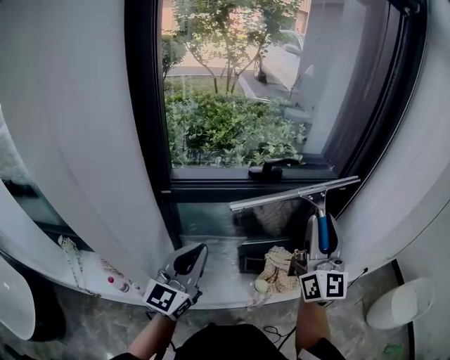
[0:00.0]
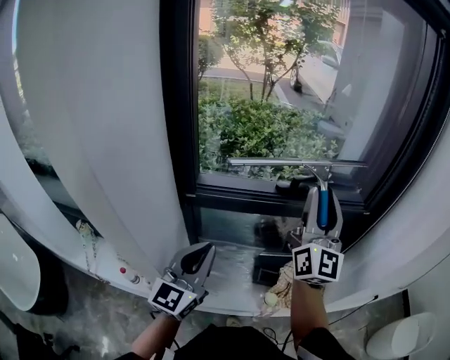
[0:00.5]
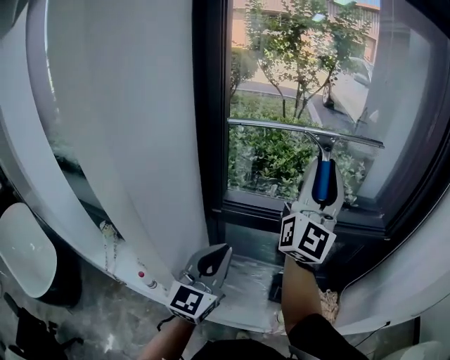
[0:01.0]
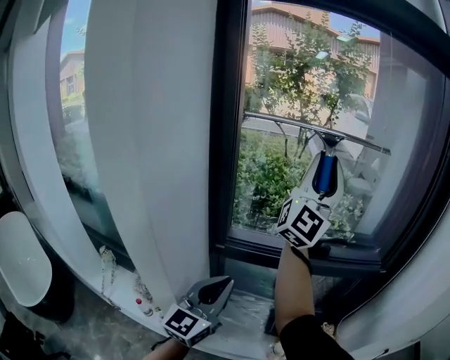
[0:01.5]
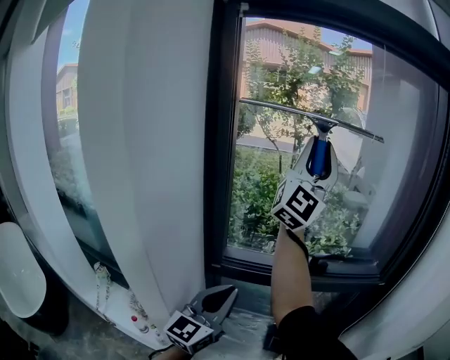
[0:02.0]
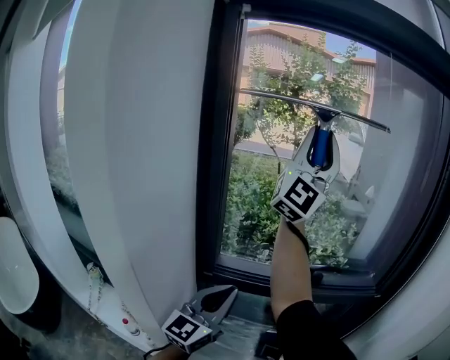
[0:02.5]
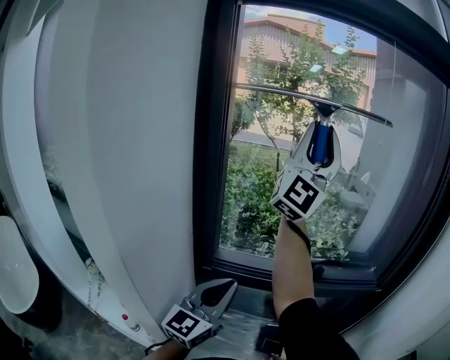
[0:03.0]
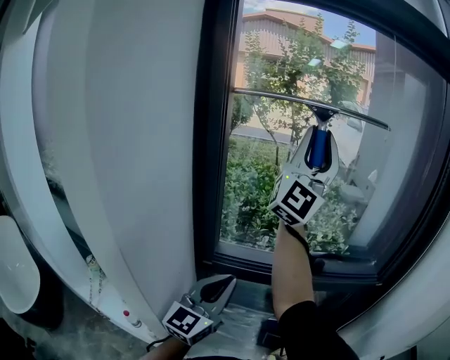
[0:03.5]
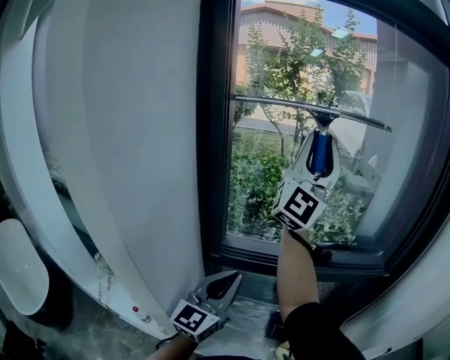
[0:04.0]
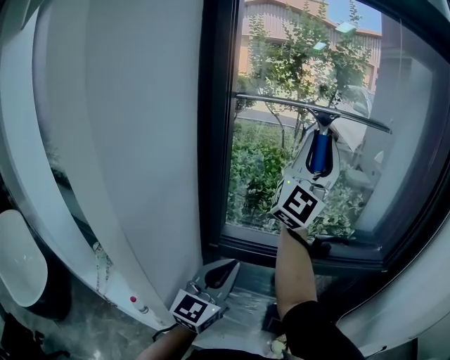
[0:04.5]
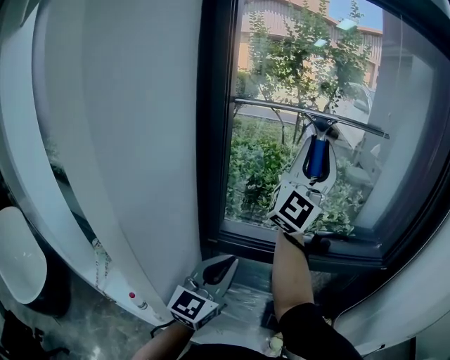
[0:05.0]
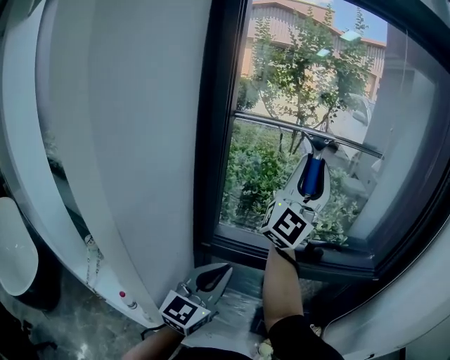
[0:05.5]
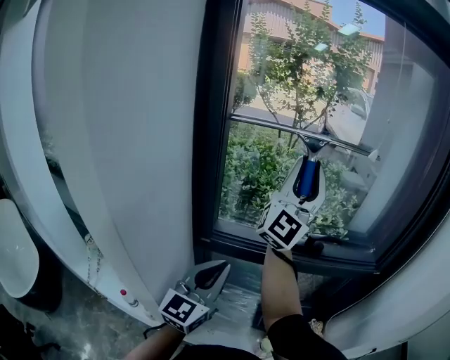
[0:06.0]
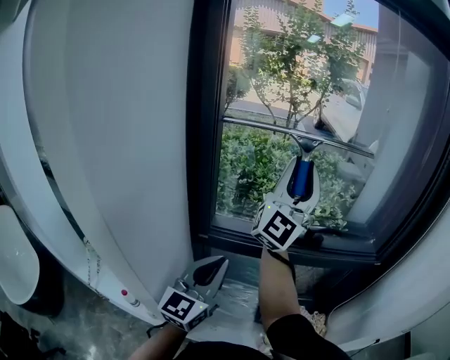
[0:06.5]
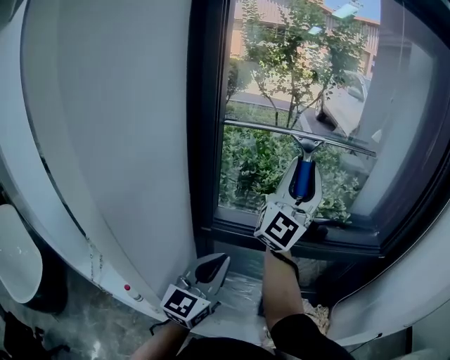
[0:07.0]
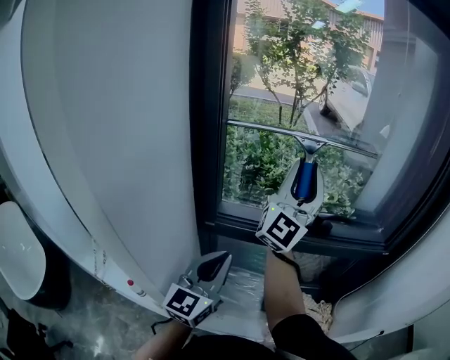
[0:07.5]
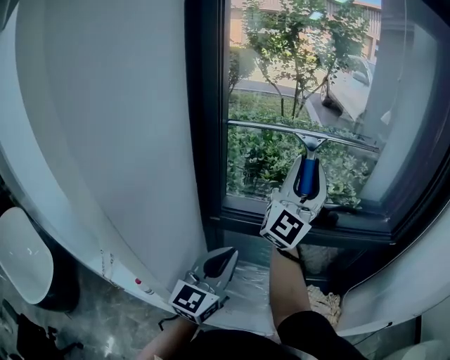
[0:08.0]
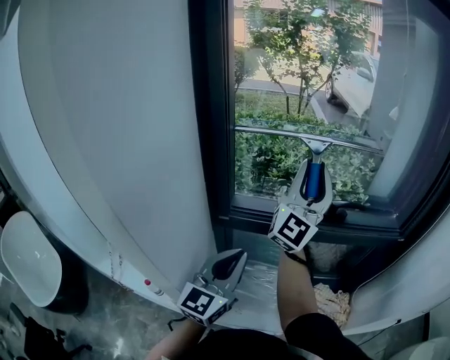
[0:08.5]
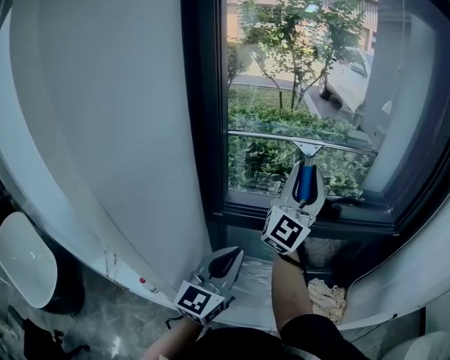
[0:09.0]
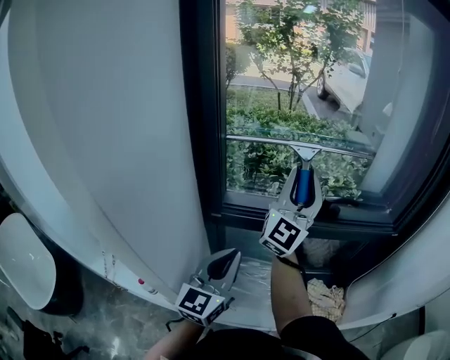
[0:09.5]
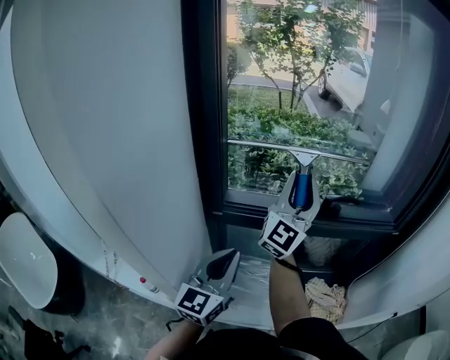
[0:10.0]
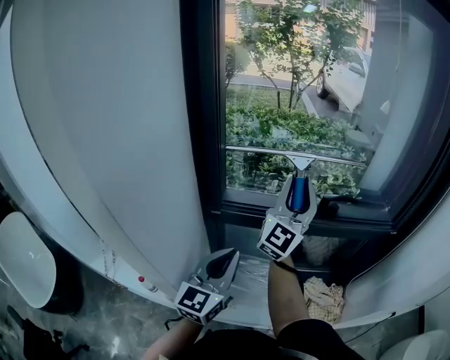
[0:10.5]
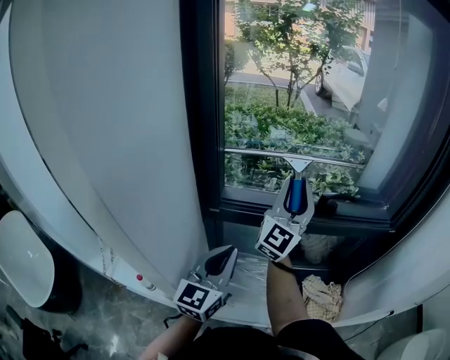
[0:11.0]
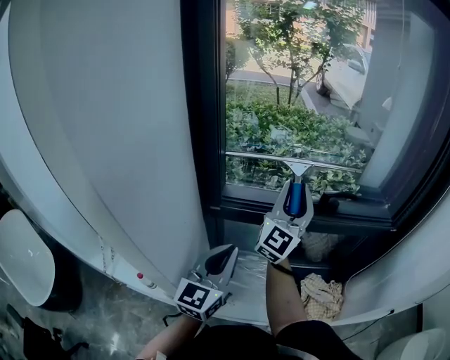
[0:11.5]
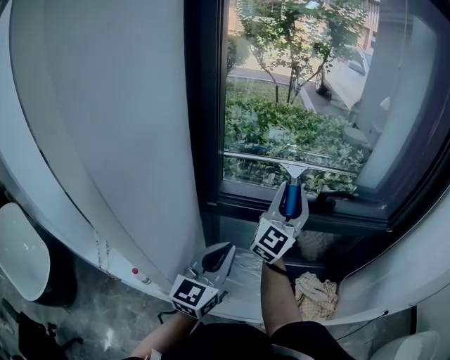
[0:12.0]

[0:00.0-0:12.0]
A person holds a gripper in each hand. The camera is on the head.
0:00.0 to 0:02.0: The right gripper is displaced upward, to the left and forward by about 40 cm, and rotates some 30 degrees. Meanwhile the left gripper travels upward by some 10 cm.
0:02.0 to 0:04.0: The grippers make only small movements.
0:04.0 to 0:06.0: The right gripper goes some 10 cm downward.
0:06.0 to 0:08.0: The right gripper shifts some 10 cm downward.
0:08.0 to 0:10.0: The right gripper heads downward, covering approximately 5 cm.
0:10.0 to 0:12.0: The right gripper heads downward, covering roughly 5 cm.

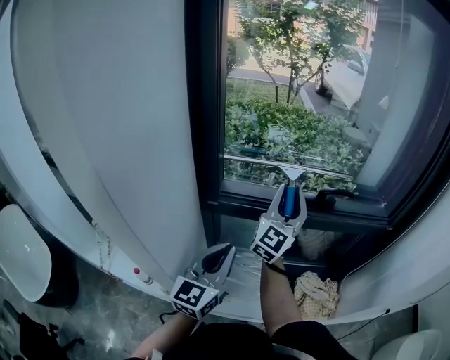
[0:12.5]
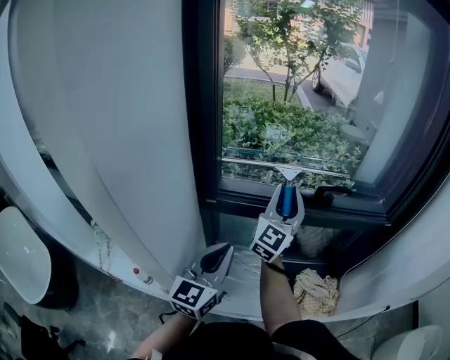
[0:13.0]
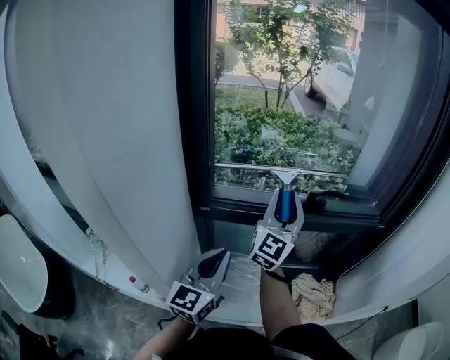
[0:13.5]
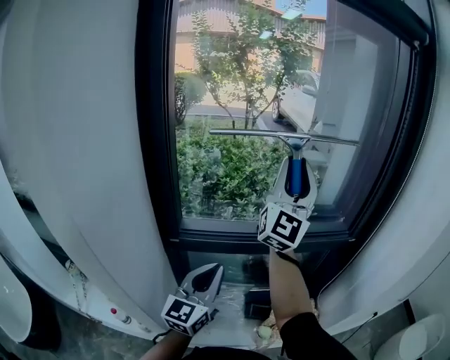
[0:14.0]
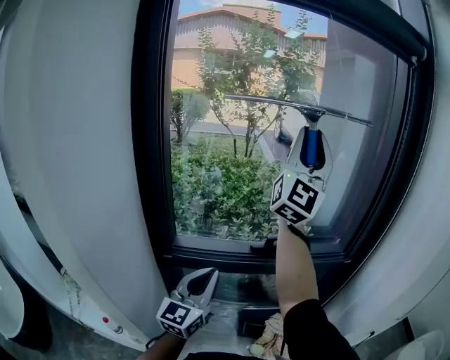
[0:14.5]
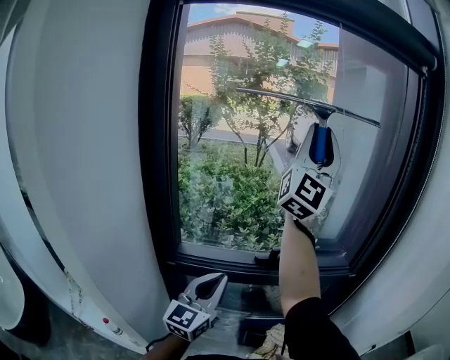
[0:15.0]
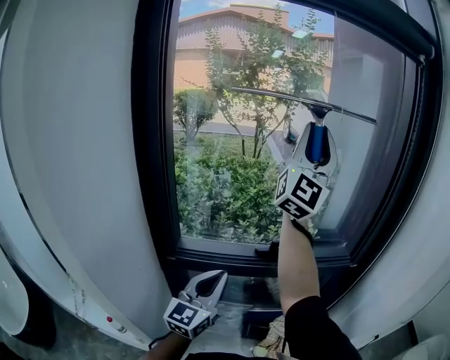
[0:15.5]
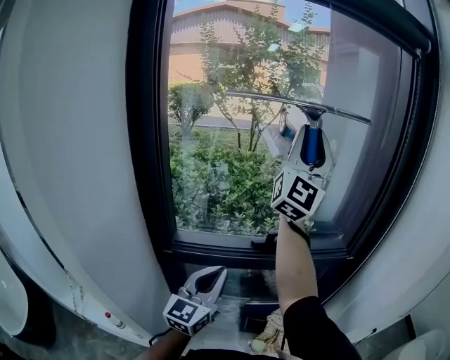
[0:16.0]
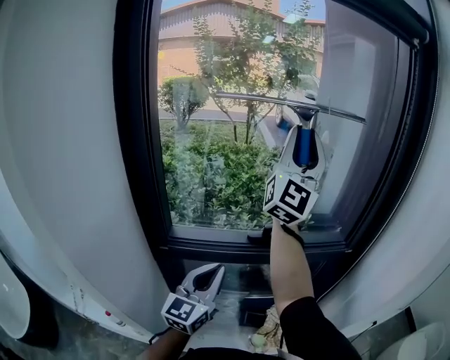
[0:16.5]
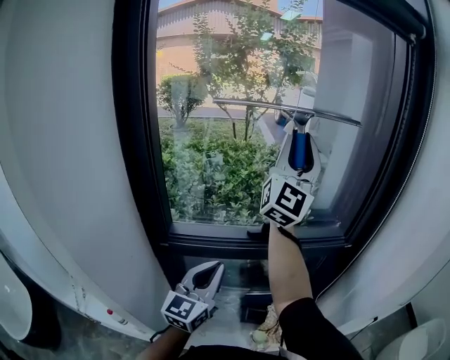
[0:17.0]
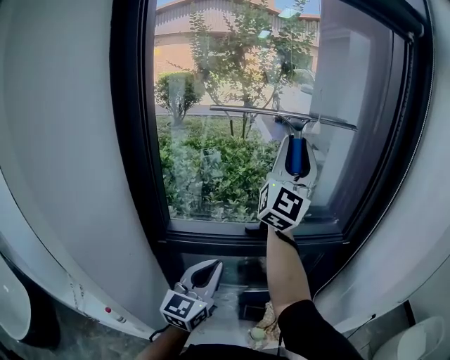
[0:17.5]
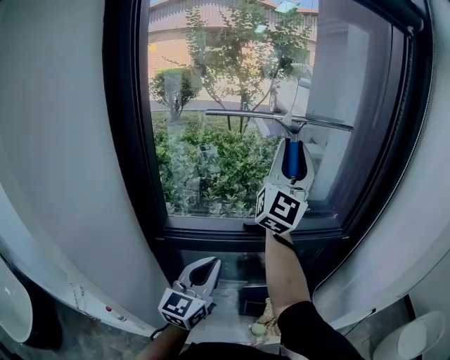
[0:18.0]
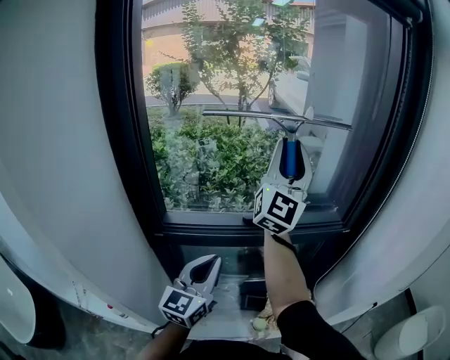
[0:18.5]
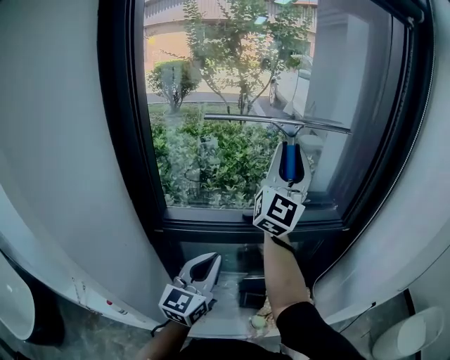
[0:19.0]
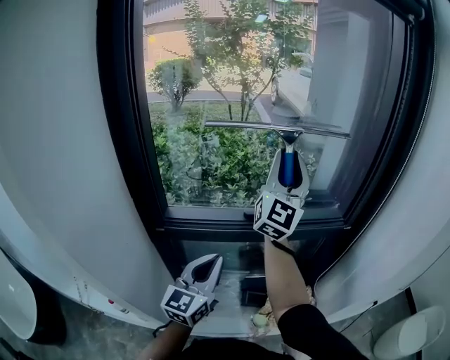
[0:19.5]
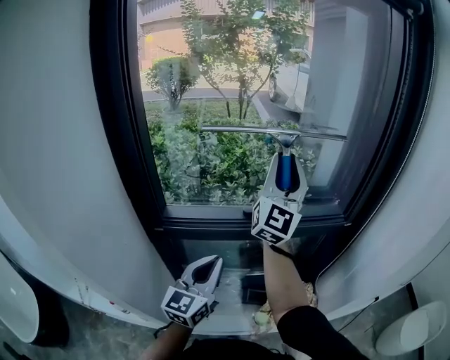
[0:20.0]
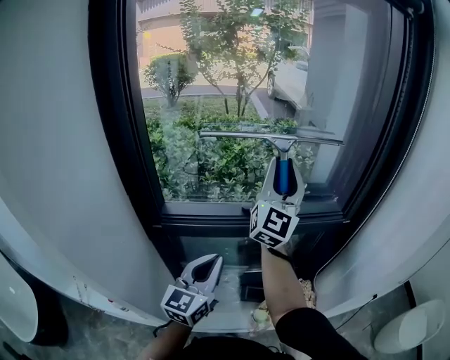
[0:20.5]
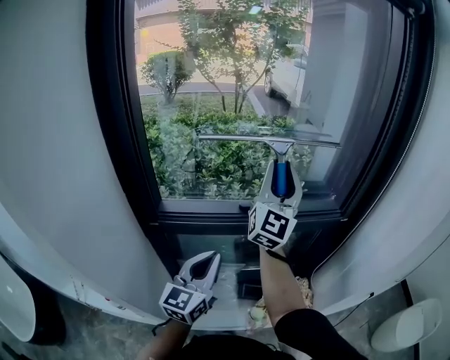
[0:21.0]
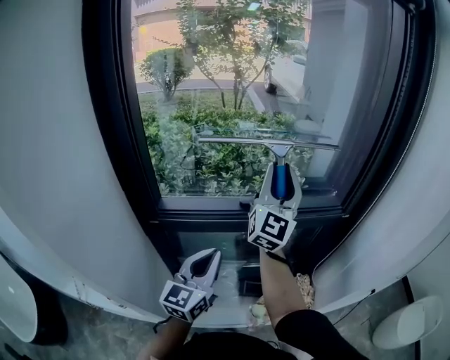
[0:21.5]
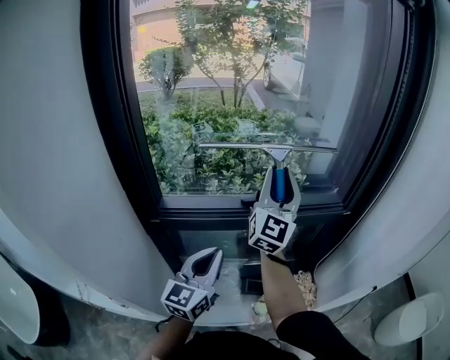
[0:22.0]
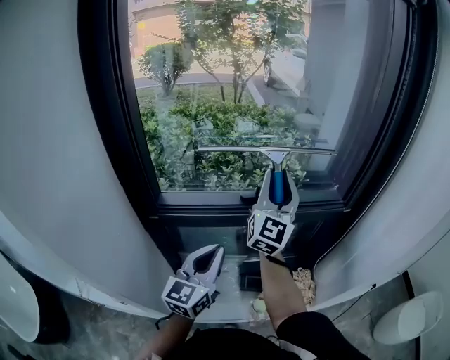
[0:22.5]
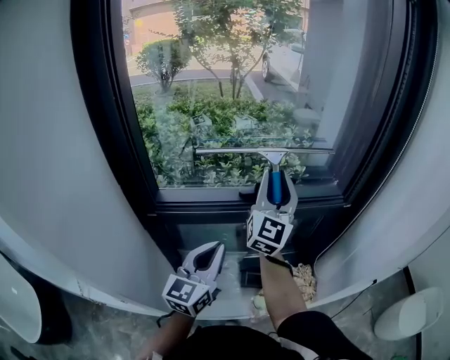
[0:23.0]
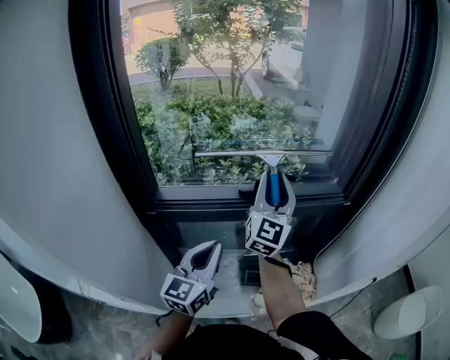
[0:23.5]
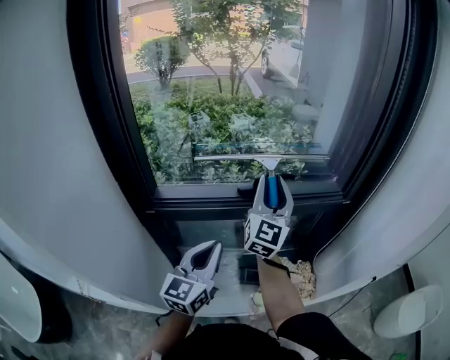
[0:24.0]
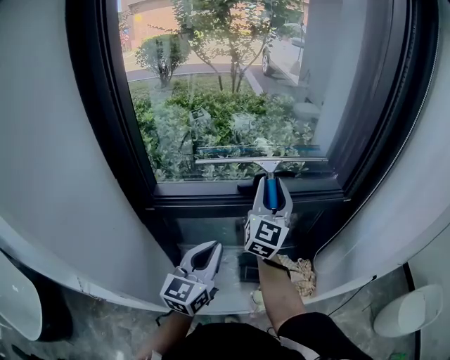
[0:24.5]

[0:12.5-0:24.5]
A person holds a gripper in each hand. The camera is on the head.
0:12.5 to 0:14.5: The left gripper shifts roughly 10 cm forward, to the right and upward. Meanwhile the right gripper moves upward, some 35 cm, and points its fingers roughly 30 degrees further upward.
0:14.5 to 0:16.5: The grippers move only a little.
0:16.5 to 0:18.5: The right gripper travels downward by approximately 10 cm.
0:18.5 to 0:20.5: The right gripper goes some 10 cm downward.
0:20.5 to 0:22.5: The right gripper heads downward, covering approximately 5 cm.
0:22.5 to 0:24.5: The right gripper heads downward, covering some 5 cm.

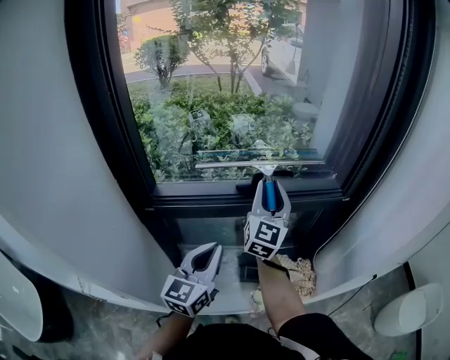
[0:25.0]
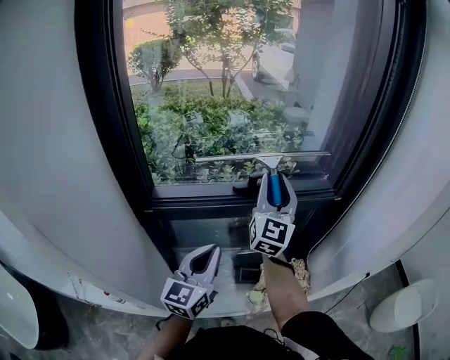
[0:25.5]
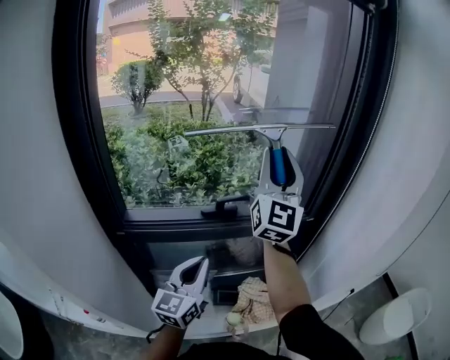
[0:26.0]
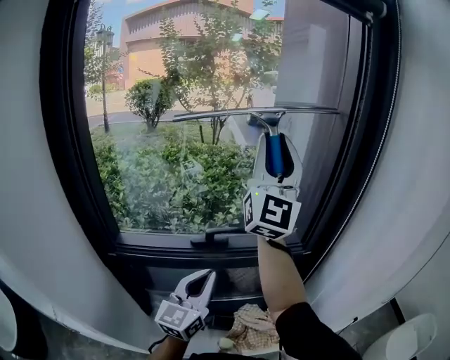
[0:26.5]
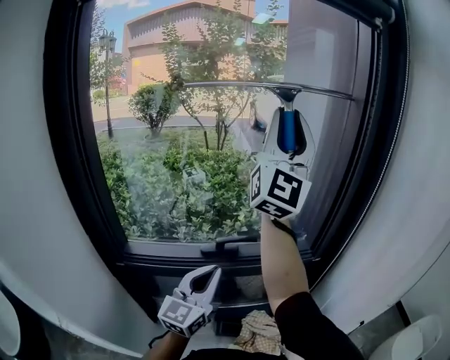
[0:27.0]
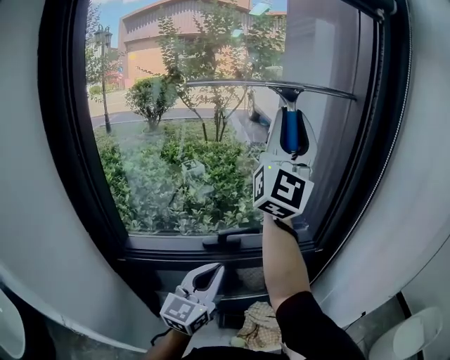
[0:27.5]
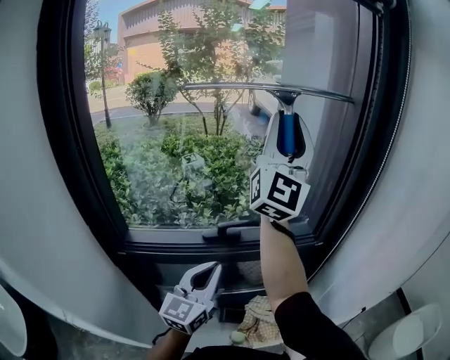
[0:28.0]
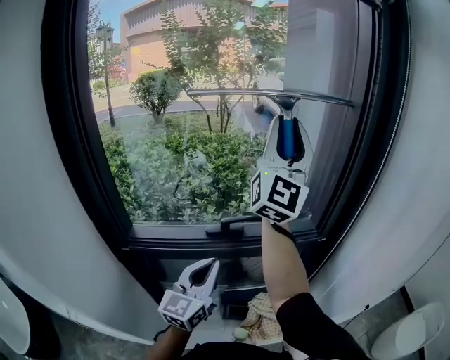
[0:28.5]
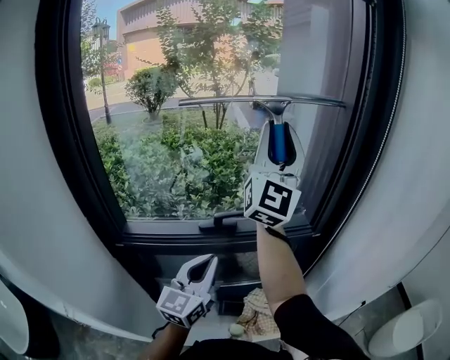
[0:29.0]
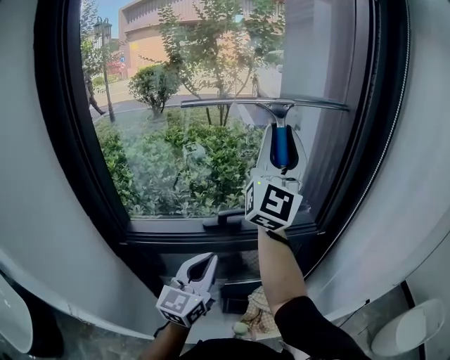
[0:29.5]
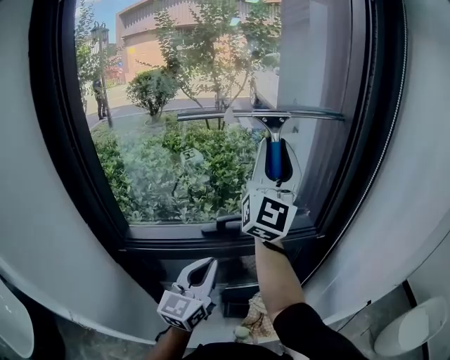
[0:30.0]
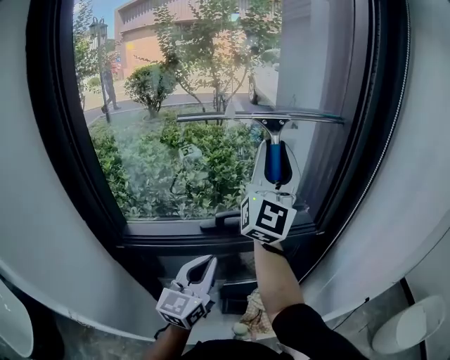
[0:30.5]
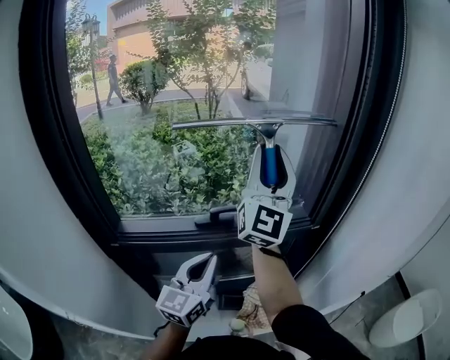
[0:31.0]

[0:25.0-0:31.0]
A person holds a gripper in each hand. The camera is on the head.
0:25.0 to 0:27.0: The left gripper is displaced forward, upward and to the right by roughly 15 cm. Meanwhile the right gripper goes roughly 35 cm upward, and tilts its fingers roughly 40 degrees upward.
0:27.0 to 0:29.0: The right gripper is displaced downward by some 10 cm.
0:29.0 to 0:31.0: The right gripper moves downward, roughly 5 cm.
